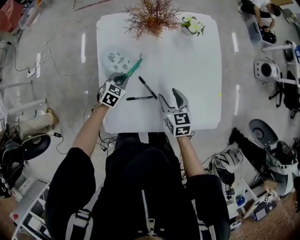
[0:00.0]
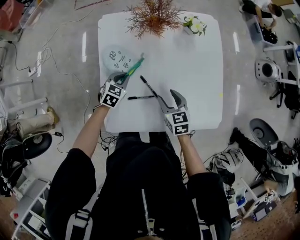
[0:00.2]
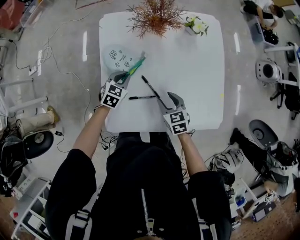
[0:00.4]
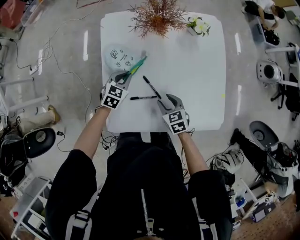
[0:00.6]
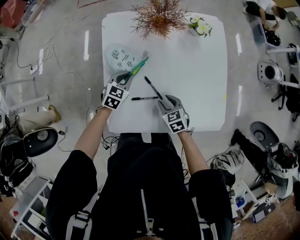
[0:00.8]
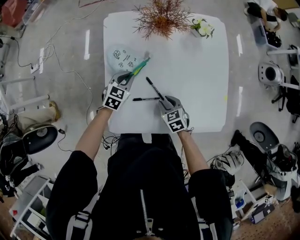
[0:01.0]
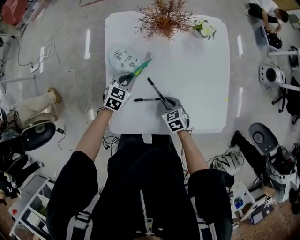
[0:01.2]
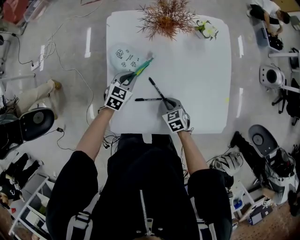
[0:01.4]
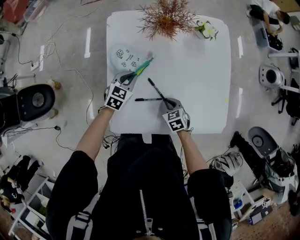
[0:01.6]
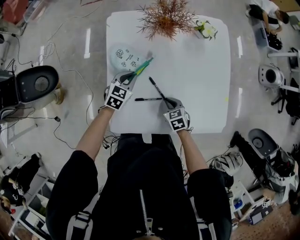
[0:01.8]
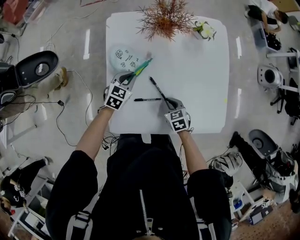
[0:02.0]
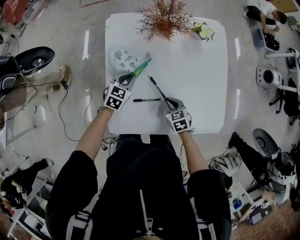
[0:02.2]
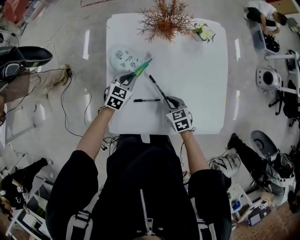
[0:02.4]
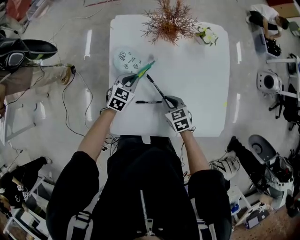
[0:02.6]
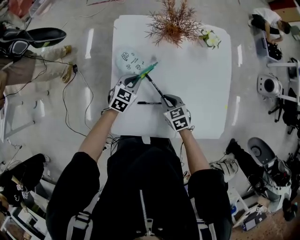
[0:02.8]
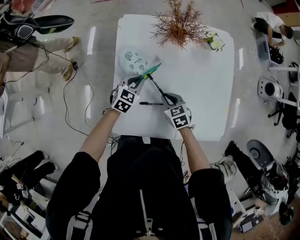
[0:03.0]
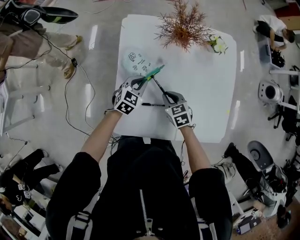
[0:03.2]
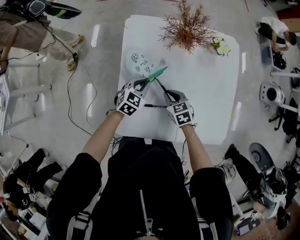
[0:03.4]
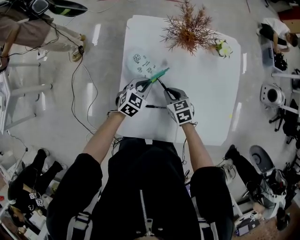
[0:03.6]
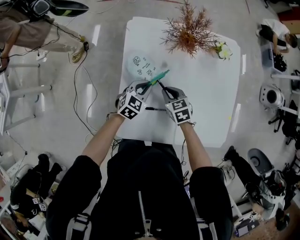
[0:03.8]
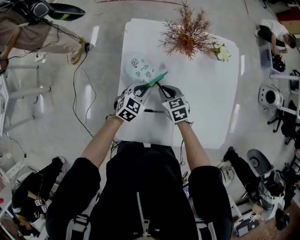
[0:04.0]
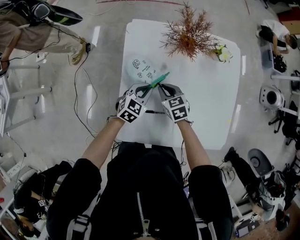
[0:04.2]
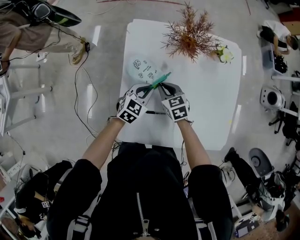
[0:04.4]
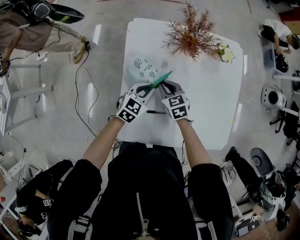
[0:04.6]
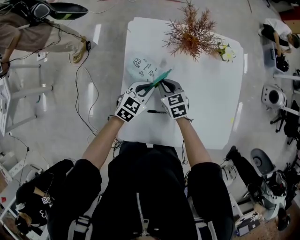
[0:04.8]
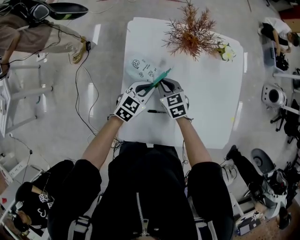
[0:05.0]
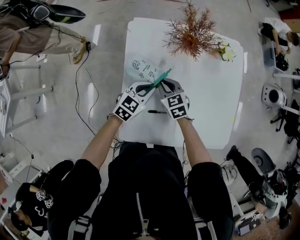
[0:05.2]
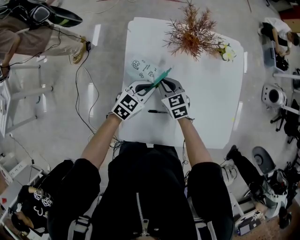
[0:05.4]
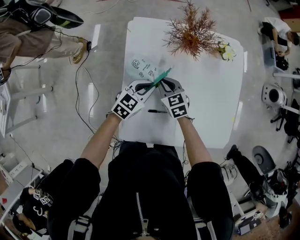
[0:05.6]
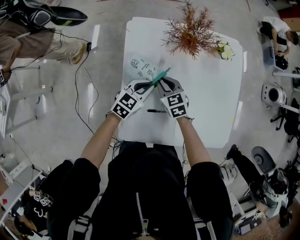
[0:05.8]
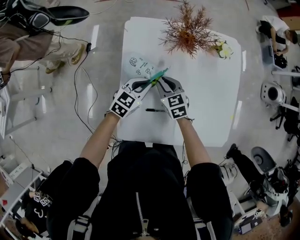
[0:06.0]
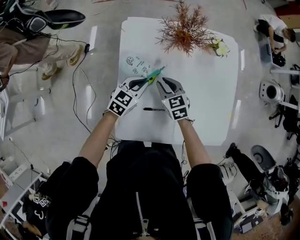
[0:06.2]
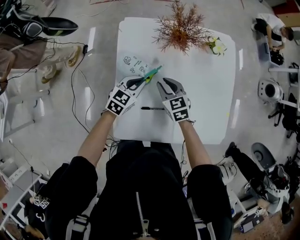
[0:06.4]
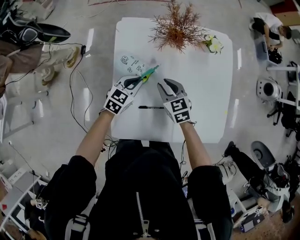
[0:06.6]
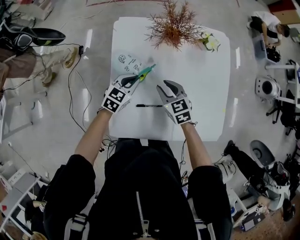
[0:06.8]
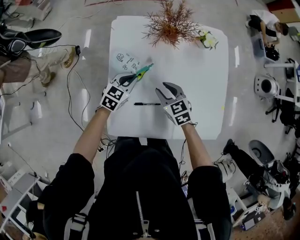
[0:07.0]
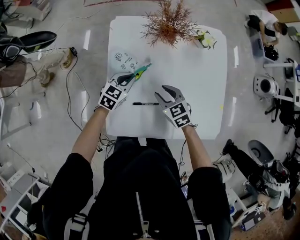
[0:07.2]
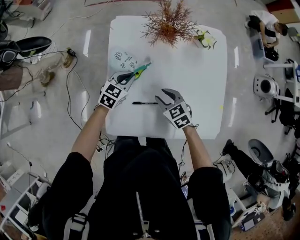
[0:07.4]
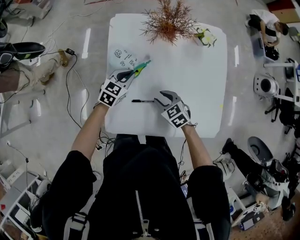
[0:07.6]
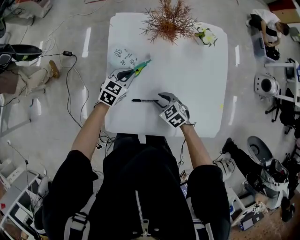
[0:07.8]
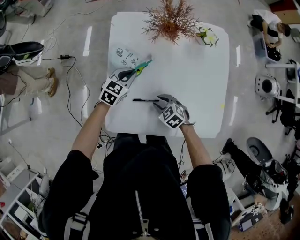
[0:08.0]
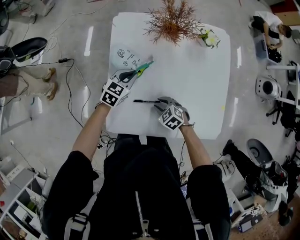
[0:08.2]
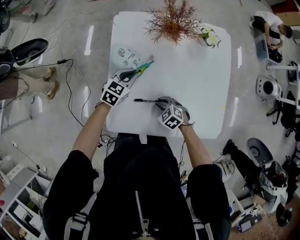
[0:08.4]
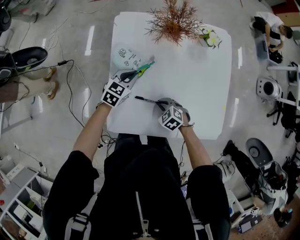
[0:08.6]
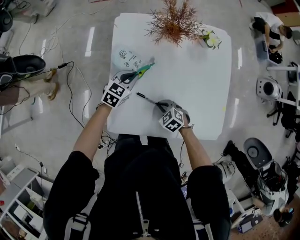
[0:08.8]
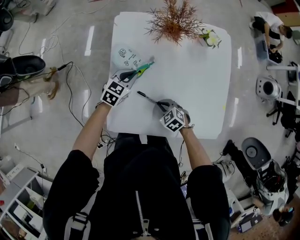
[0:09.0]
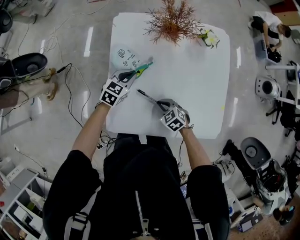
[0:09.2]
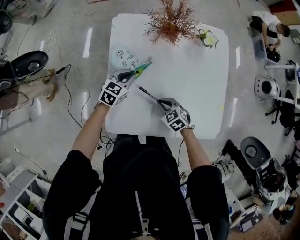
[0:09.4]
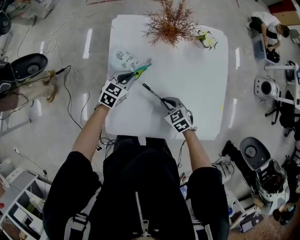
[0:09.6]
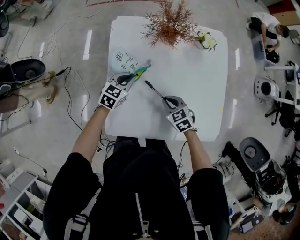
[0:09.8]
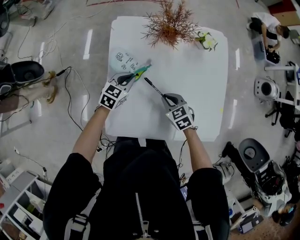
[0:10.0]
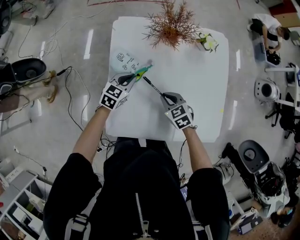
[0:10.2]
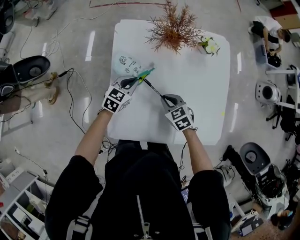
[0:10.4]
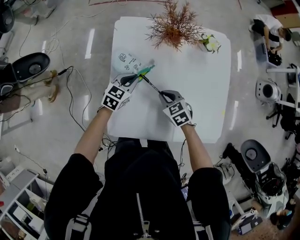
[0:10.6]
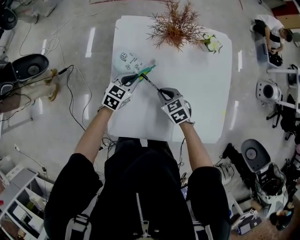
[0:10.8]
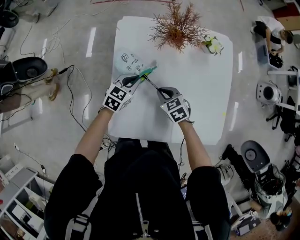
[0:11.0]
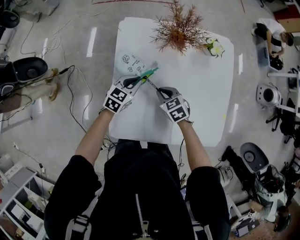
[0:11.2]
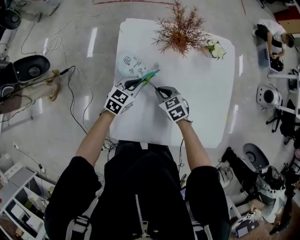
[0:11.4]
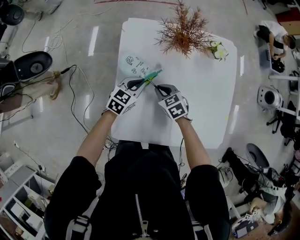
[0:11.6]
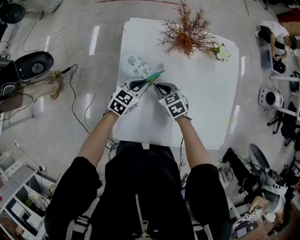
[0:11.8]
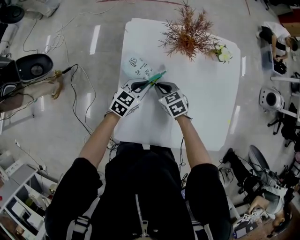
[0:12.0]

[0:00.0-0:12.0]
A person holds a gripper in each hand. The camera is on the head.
0:00.0 to 0:01.6: The right gripper travels downward by approximately 10 cm, swivels about 30 degrees, and closes its fingers.
0:01.6 to 0:03.0: The right gripper is displaced forward and upward by about 10 cm.
0:03.0 to 0:04.4: The right gripper travels forward and to the left by some 10 cm.
0:04.4 to 0:06.0: The grippers make only small movements.
0:06.0 to 0:07.6: The right gripper moves backward and to the right, approximately 15 cm.
0:07.6 to 0:09.0: The right gripper moves downward, approximately 5 cm, and closes its fingers.
0:09.0 to 0:10.4: The right gripper travels forward and upward by some 10 cm.
0:10.4 to 0:12.0: The right gripper shifts approximately 10 cm forward and to the left.

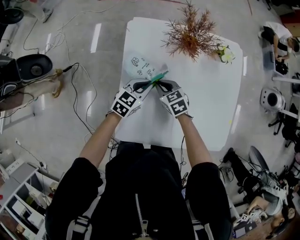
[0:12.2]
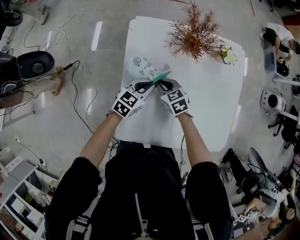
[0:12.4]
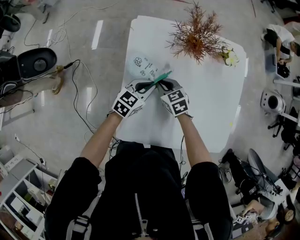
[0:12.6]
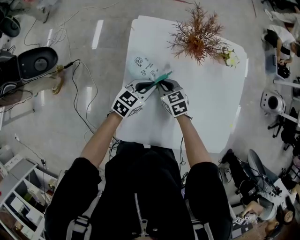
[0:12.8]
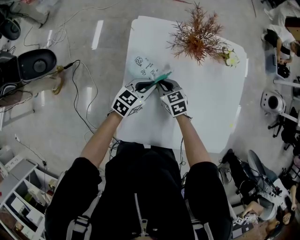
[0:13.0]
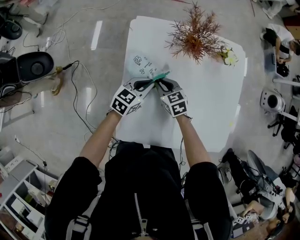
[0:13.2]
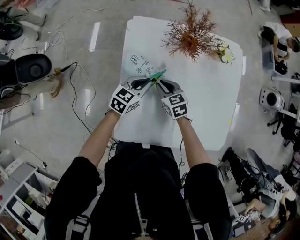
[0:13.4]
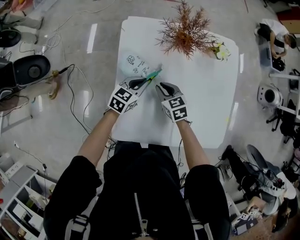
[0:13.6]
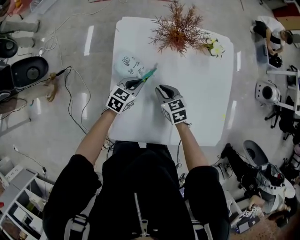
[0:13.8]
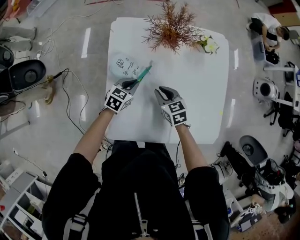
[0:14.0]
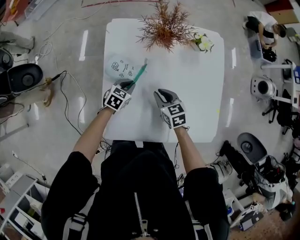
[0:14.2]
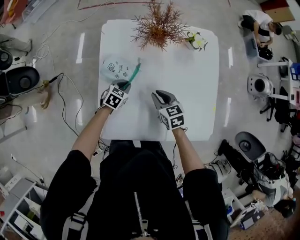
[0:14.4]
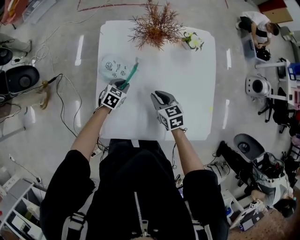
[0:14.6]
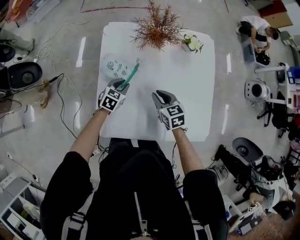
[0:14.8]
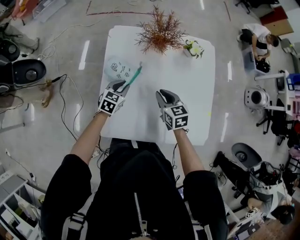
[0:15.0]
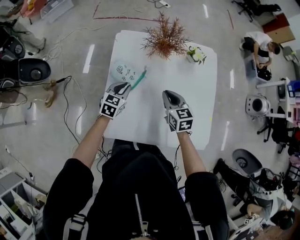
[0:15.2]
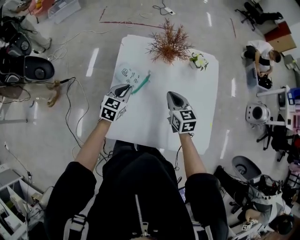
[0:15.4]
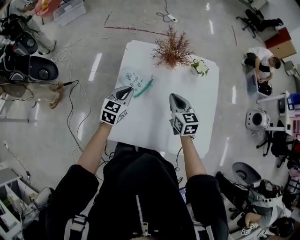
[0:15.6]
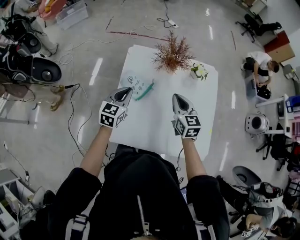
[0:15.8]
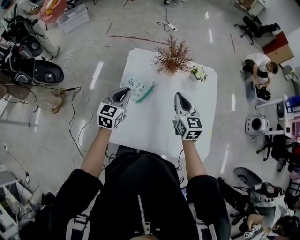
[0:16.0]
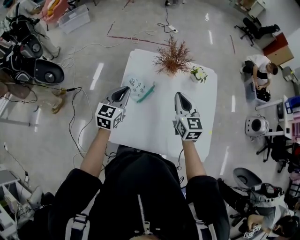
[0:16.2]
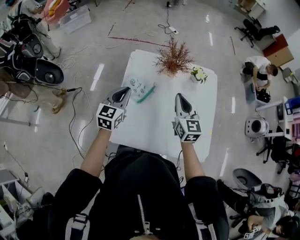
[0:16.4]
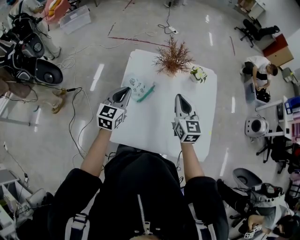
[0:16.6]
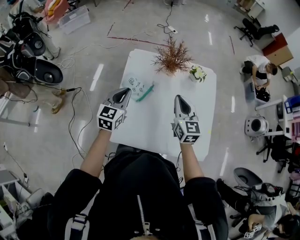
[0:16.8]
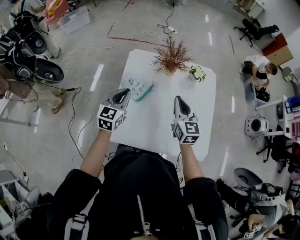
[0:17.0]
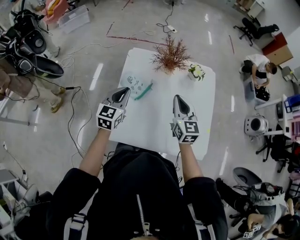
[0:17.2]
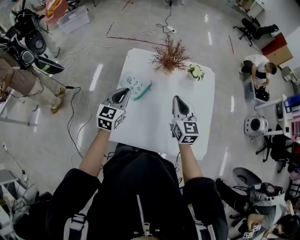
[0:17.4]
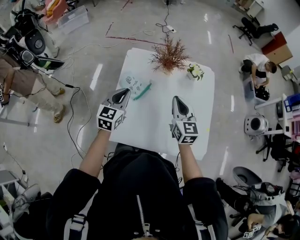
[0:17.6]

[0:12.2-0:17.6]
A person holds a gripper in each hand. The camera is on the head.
0:12.2 to 0:13.6: The grippers stay close to where they were, moving slightly.
0:13.6 to 0:15.0: The left gripper travels downward and back again, some 10 cm each way. Meanwhile the right gripper moves to the right, upward and backward, about 15 cm.
0:15.0 to 0:16.2: The two grippers go some 20 cm upward. The left gripper turns by about 30 degrees. The right gripper changes its angle by some 30 degrees.
0:16.2 to 0:17.6: The grippers make only small movements.

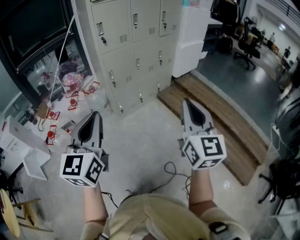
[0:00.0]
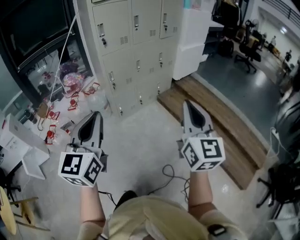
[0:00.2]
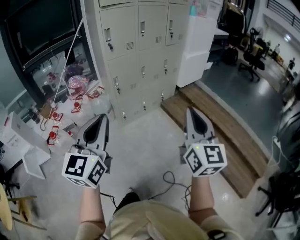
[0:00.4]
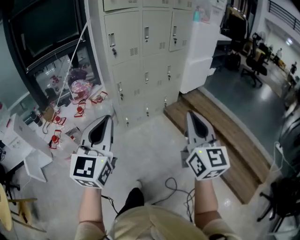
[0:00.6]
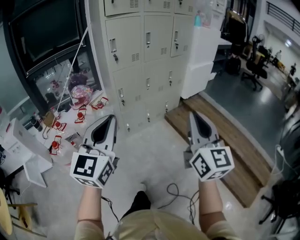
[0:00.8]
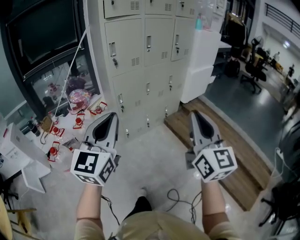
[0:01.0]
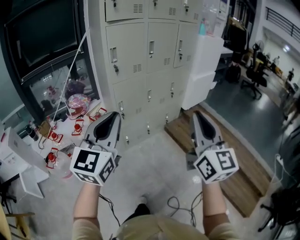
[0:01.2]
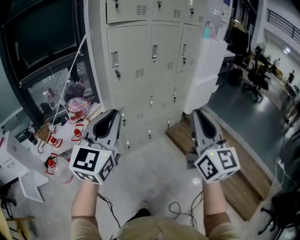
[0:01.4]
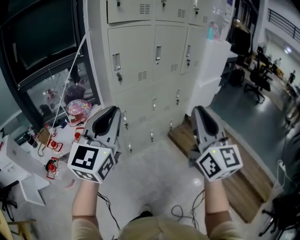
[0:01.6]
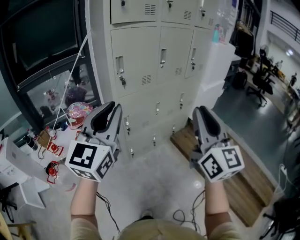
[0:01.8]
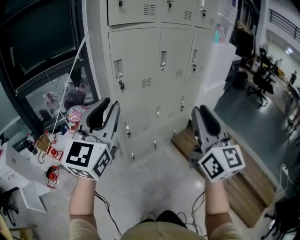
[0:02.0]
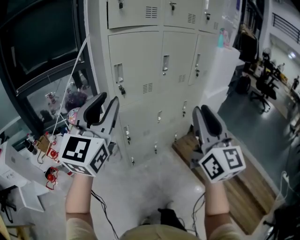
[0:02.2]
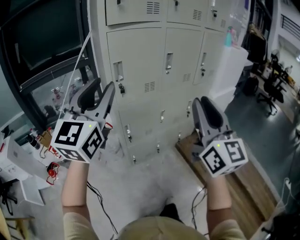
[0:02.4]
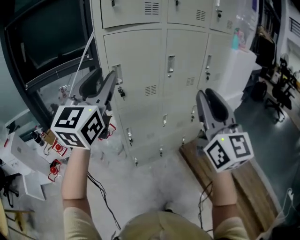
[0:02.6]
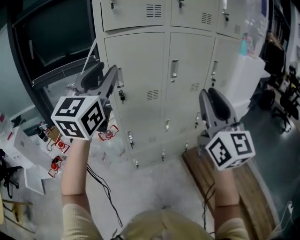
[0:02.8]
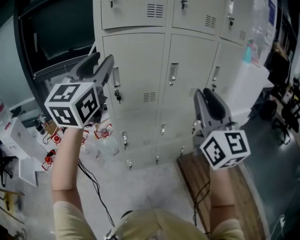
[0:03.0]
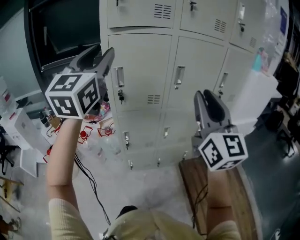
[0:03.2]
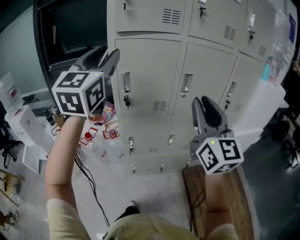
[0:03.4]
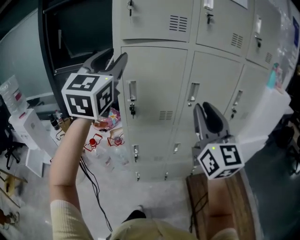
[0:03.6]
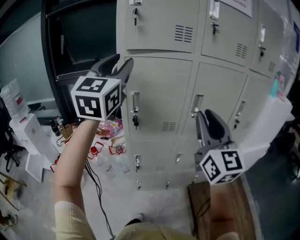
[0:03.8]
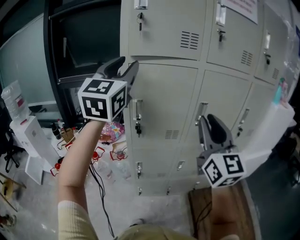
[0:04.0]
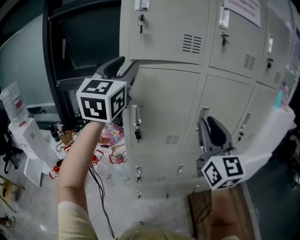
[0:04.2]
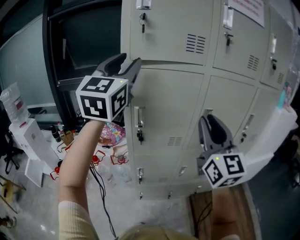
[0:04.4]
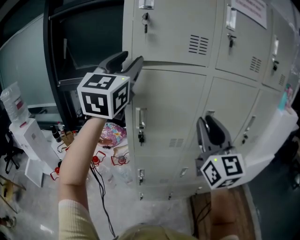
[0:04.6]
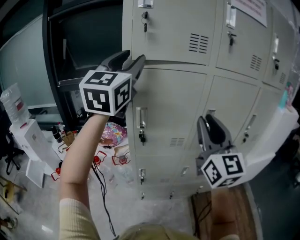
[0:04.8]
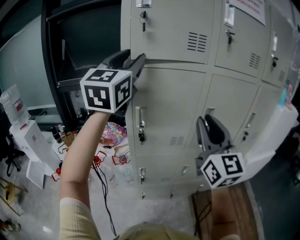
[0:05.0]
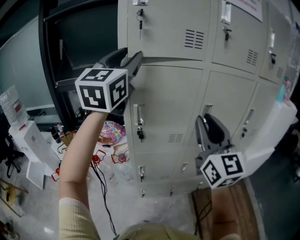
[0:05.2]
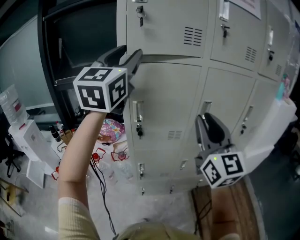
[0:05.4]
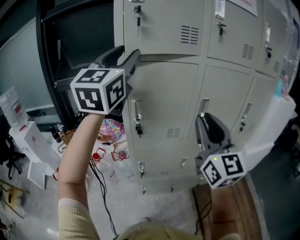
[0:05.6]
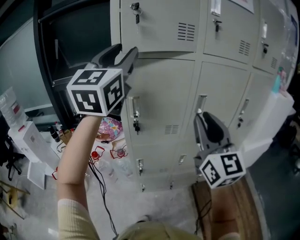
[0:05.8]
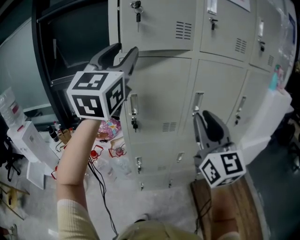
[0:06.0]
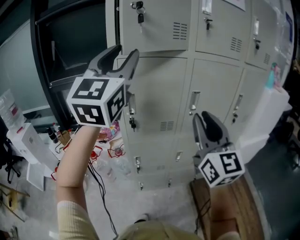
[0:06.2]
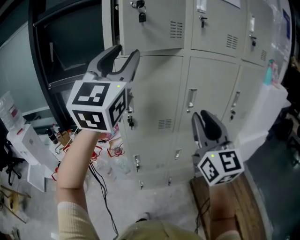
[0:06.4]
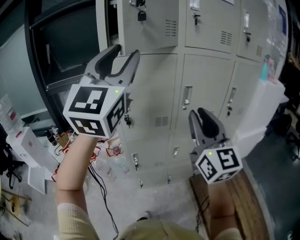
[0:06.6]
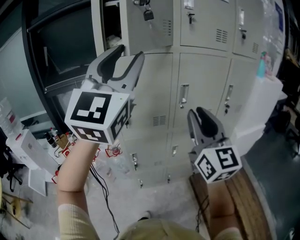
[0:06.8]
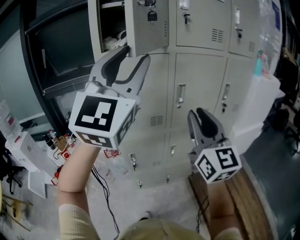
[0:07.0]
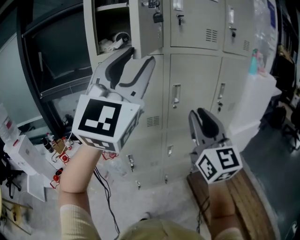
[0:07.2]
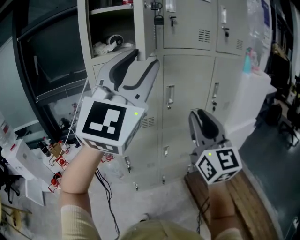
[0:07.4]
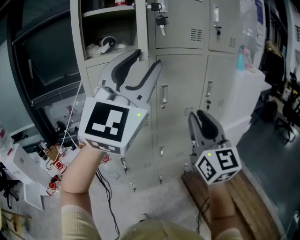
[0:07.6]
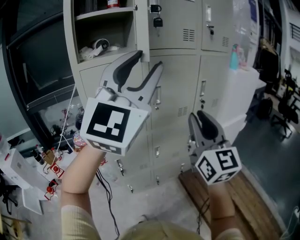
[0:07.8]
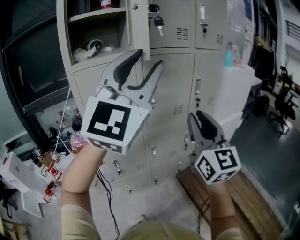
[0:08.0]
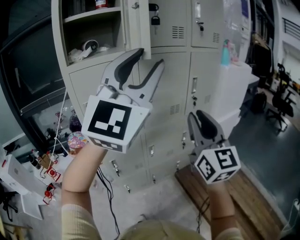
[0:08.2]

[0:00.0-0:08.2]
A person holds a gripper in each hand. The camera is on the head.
0:00.0 to 0:01.6: The grippers both shift forward by some 25 cm.
0:01.6 to 0:03.2: The right gripper is displaced forward by roughly 30 cm, and changes its angle by approximately 20 degrees, while the left gripper goes some 30 cm forward and upward, swivels approximately 30 degrees, and opens.
0:03.2 to 0:05.0: The right gripper shifts roughly 15 cm forward and to the left. The left gripper goes roughly 15 cm forward and upward.
0:05.0 to 0:06.6: The left gripper is displaced backward and to the right by about 15 cm, while the right gripper moves backward, roughly 10 cm.
0:06.6 to 0:08.2: The left gripper moves to the right, approximately 20 cm, and swivels about 20 degrees. The right gripper travels to the right by roughly 15 cm.
